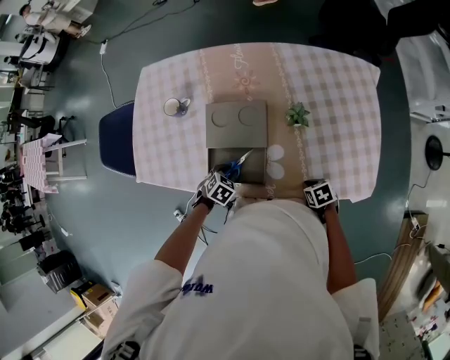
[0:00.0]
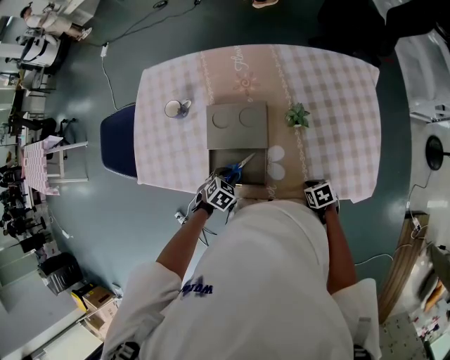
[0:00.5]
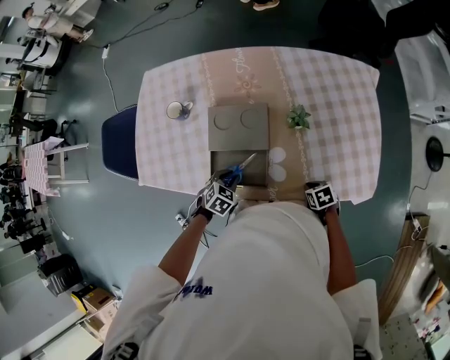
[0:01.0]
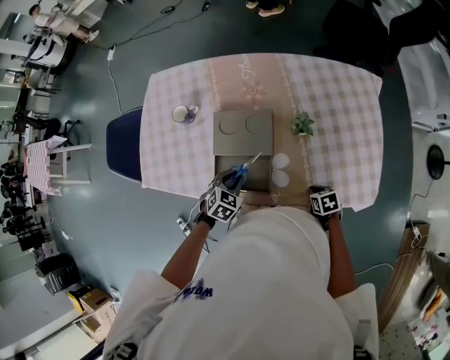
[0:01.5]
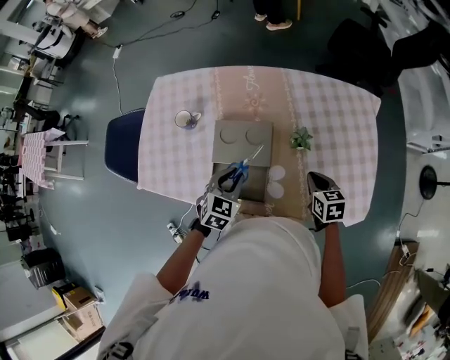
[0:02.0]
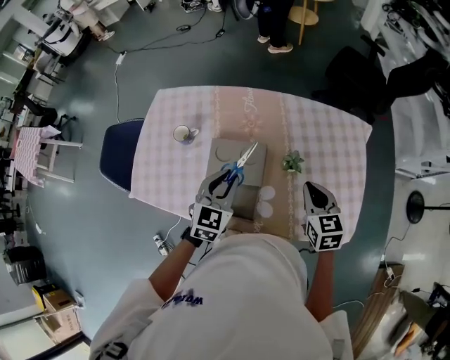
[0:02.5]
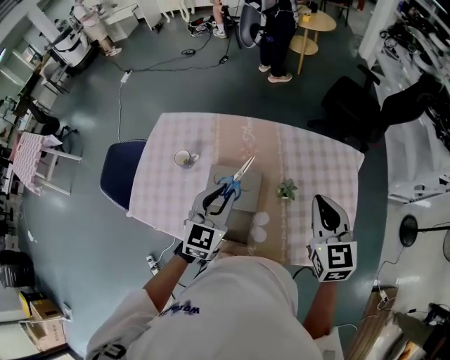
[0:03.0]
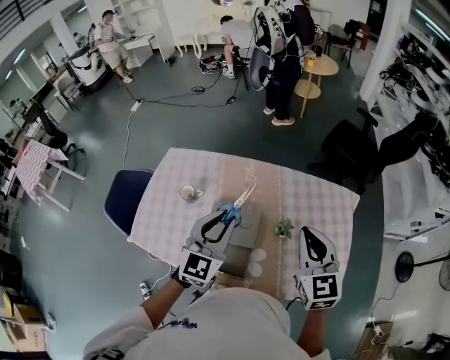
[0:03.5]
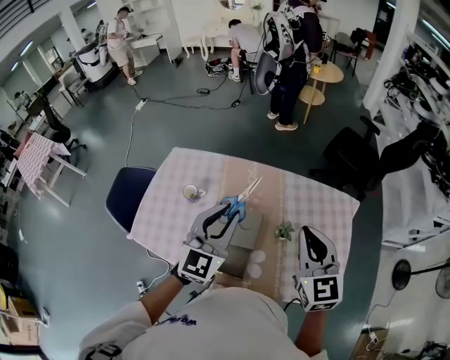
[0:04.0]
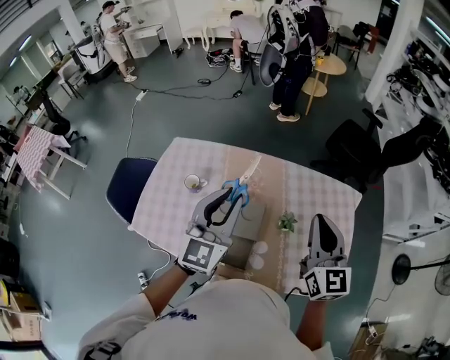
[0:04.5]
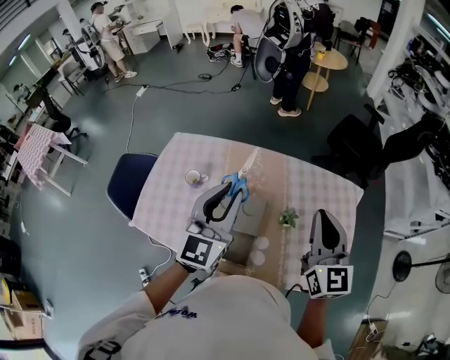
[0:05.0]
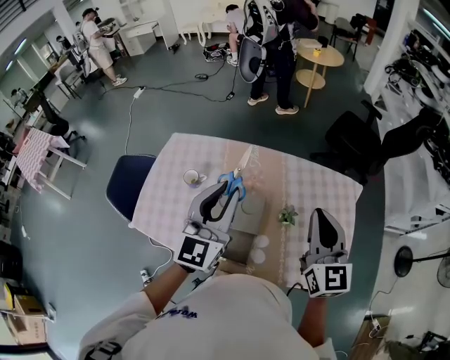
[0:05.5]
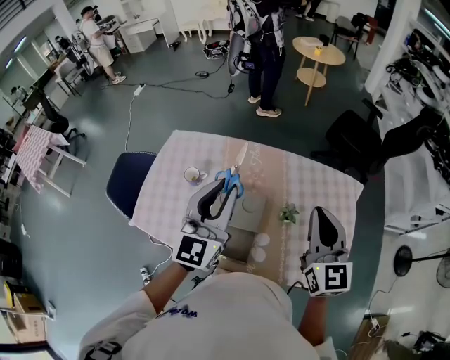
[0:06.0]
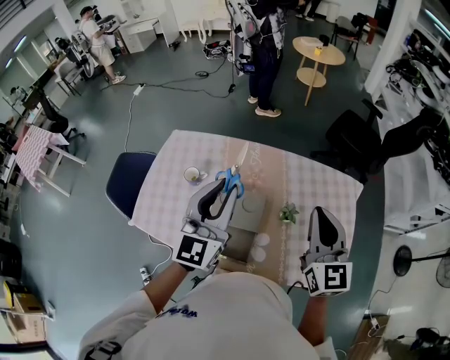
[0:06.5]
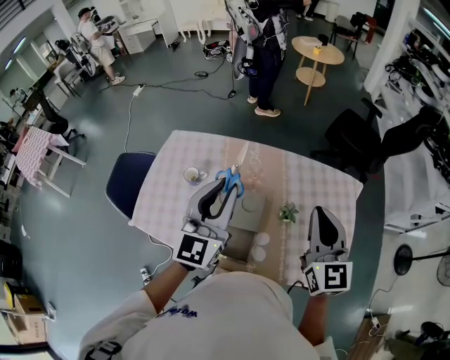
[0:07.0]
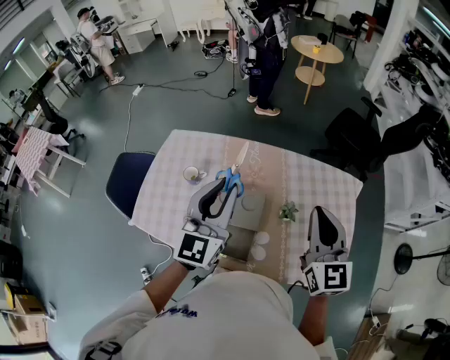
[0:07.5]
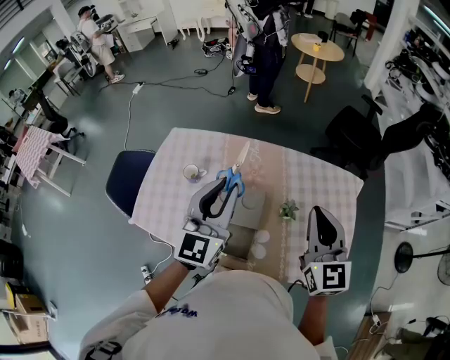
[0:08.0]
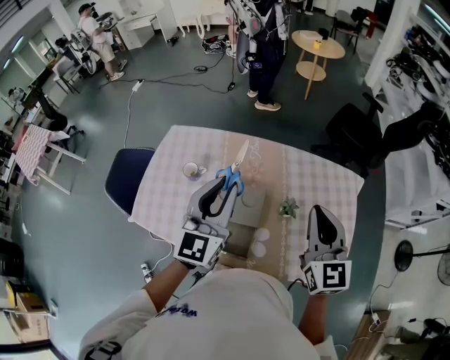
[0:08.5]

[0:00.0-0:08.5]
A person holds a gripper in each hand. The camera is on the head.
0:00.0 to 0:02.0: The left gripper goes some 20 cm upward, and turns by approximately 30 degrees, while the right gripper heads upward and forward, covering roughly 20 cm, and changes its angle by roughly 30 degrees.
0:02.0 to 0:04.0: Both grippers move upward, some 30 cm. The right gripper angles its fingers upward, by about 30 degrees. Meanwhile the left gripper tilts its fingers about 40 degrees upward.
0:04.0 to 0:06.5: There are only small adjustments of the grippers.
0:06.5 to 0:08.5: Neither gripper changes place.

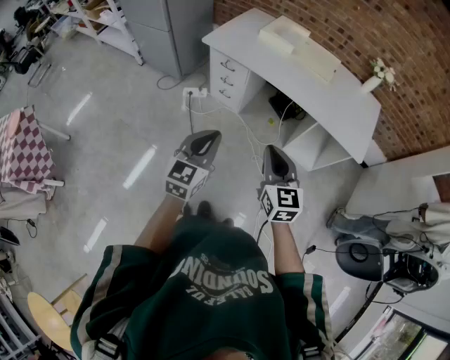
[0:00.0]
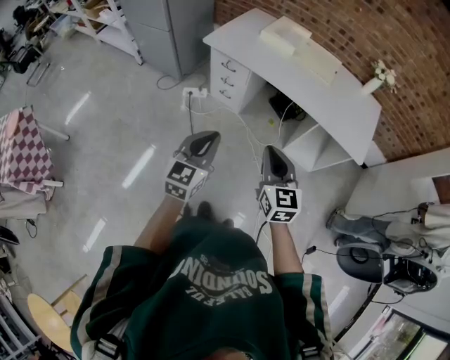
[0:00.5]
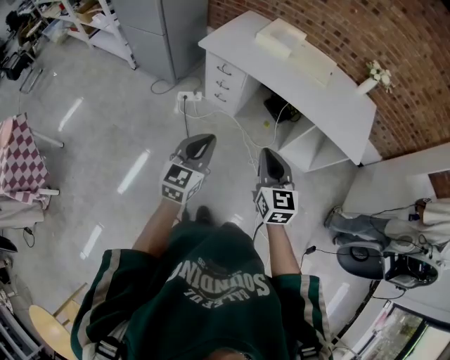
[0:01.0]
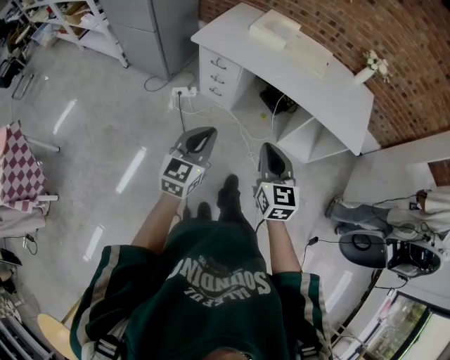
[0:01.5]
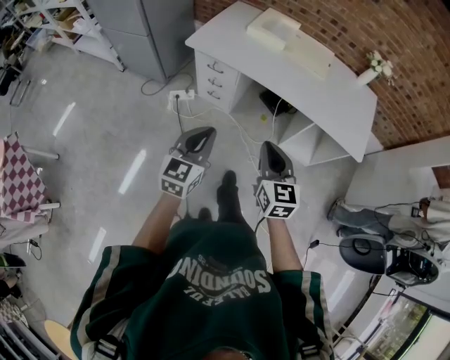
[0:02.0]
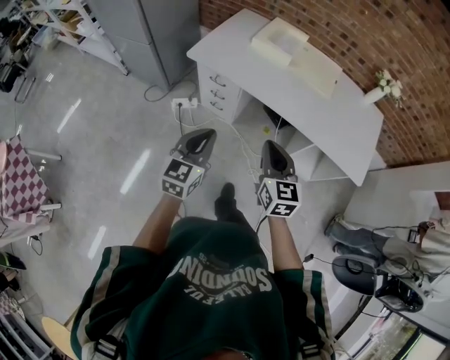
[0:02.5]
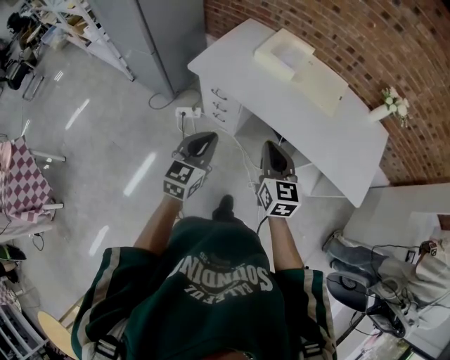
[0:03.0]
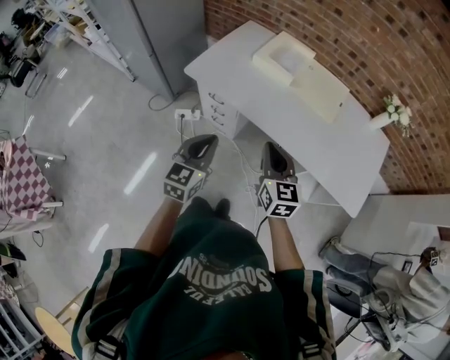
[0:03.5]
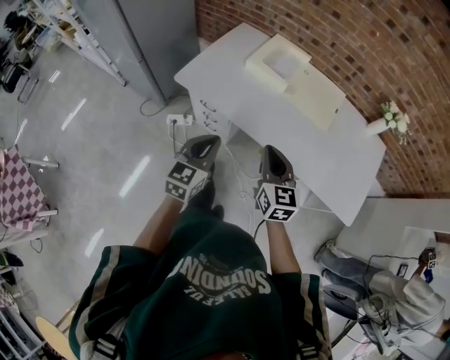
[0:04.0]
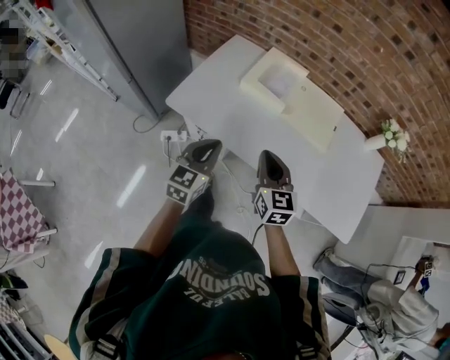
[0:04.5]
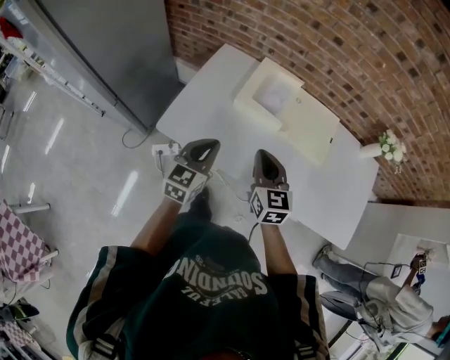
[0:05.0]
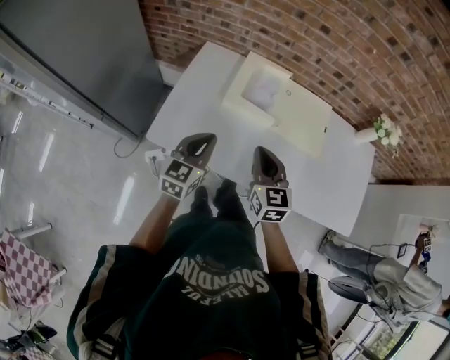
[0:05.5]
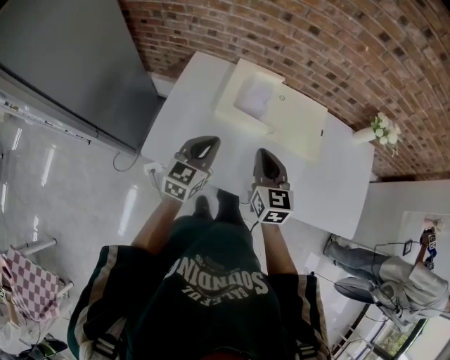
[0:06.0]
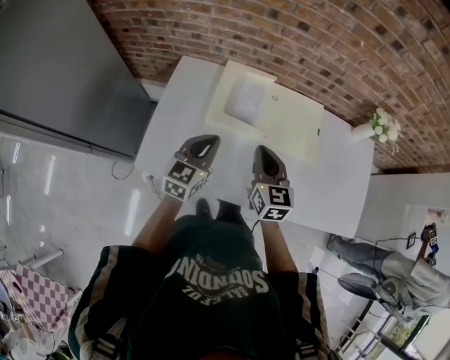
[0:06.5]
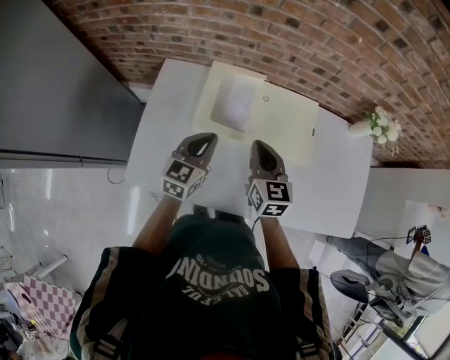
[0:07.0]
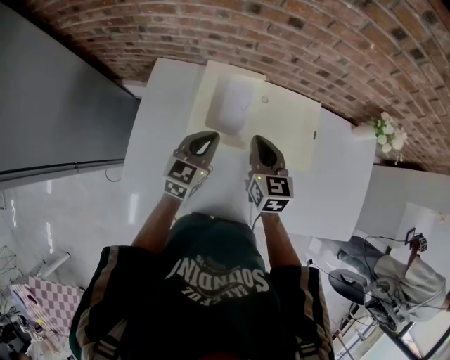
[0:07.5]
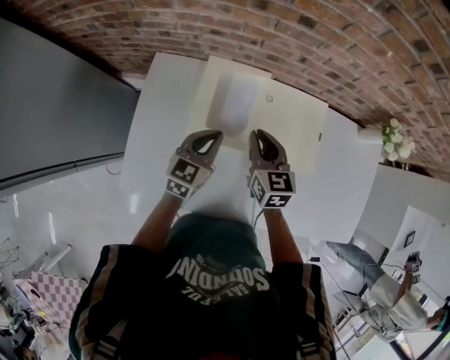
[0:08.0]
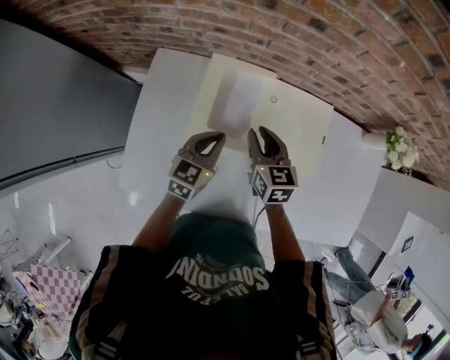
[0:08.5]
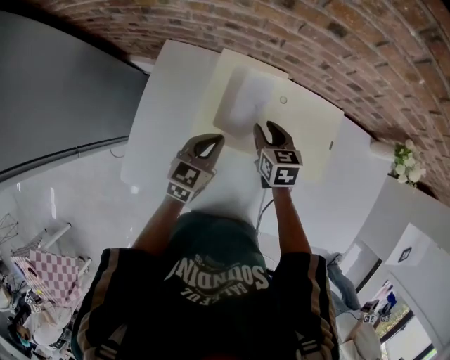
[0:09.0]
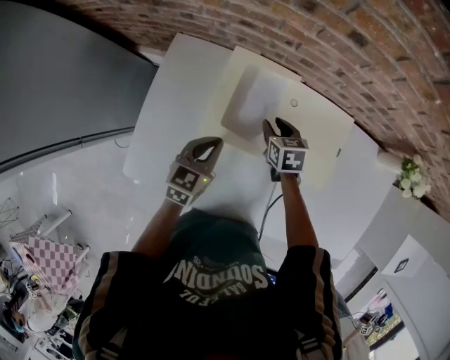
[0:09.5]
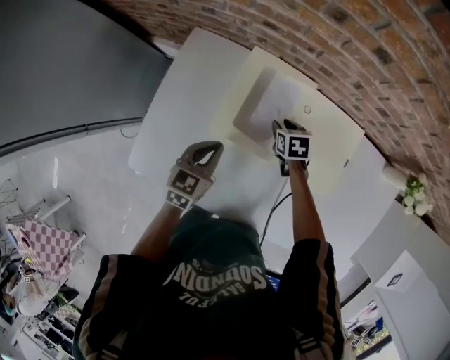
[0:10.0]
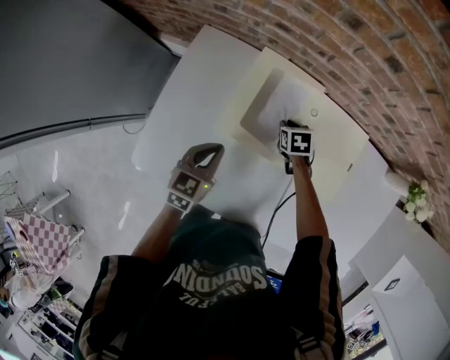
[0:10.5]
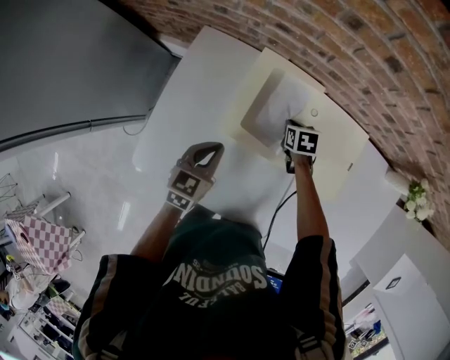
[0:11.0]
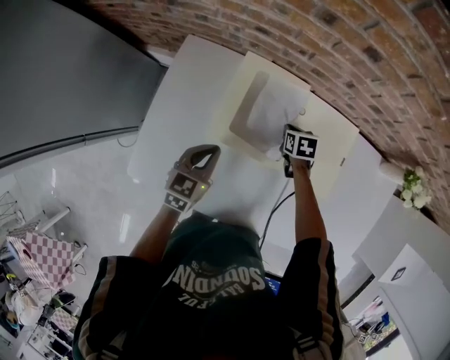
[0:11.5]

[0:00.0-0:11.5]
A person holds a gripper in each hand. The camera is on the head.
0:00.0 to 0:02.0: The grippers both shift forward by approximately 10 cm.
0:02.0 to 0:04.0: Both grippers move forward, roughly 30 cm.
0:04.0 to 0:06.0: The two grippers go some 30 cm forward.
0:06.0 to 0:07.5: Both grippers travel together forward, some 20 cm.
0:07.5 to 0:09.5: The right gripper heads downward and forward, covering about 20 cm, swivels roughly 30 degrees, and opens; the left gripper travels downward by approximately 5 cm.
0:09.5 to 0:11.5: The right gripper goes about 5 cm downward, and closes its fingers.

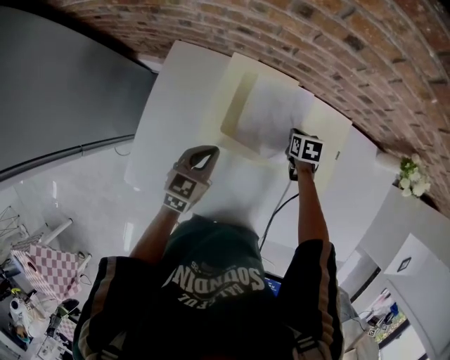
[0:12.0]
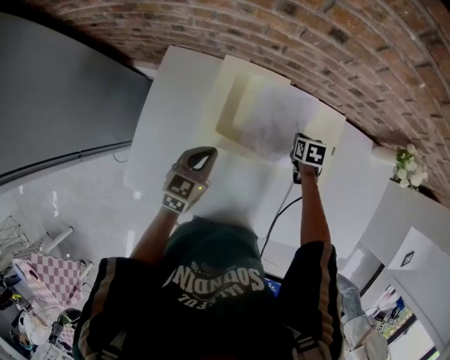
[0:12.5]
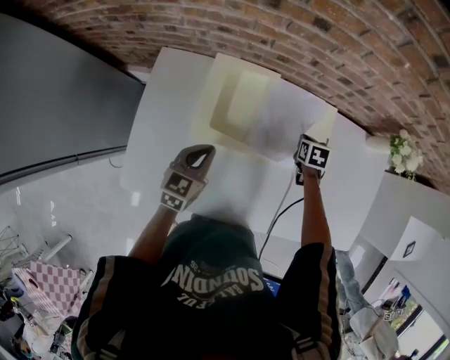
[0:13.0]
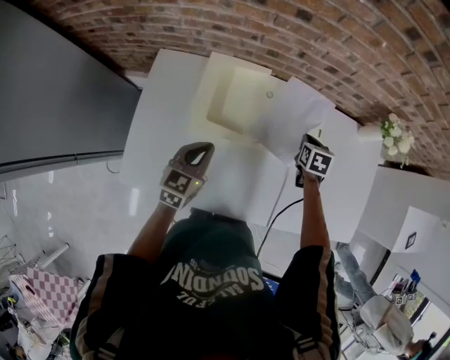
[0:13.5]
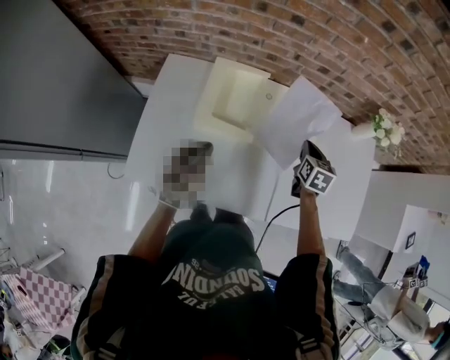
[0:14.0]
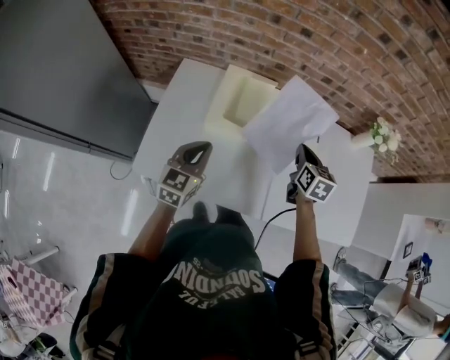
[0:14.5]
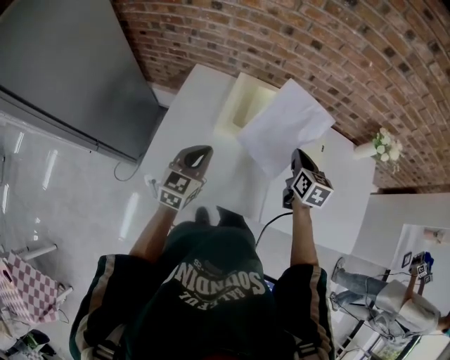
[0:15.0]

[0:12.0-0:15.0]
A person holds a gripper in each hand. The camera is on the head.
0:12.0 to 0:13.5: The right gripper moves to the right, upward and backward, approximately 15 cm, while the left gripper shifts by some 5 cm.
0:13.5 to 0:15.0: The left gripper is displaced backward, upward and to the left by about 15 cm. Meanwhile the right gripper shifts about 25 cm upward, backward and to the left, and rotates some 30 degrees.

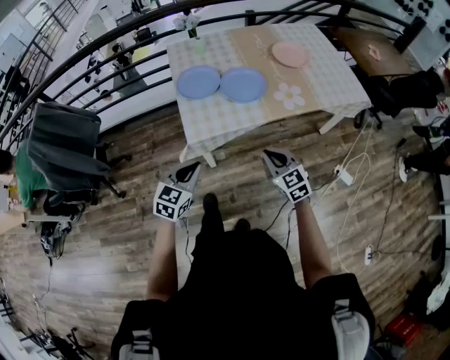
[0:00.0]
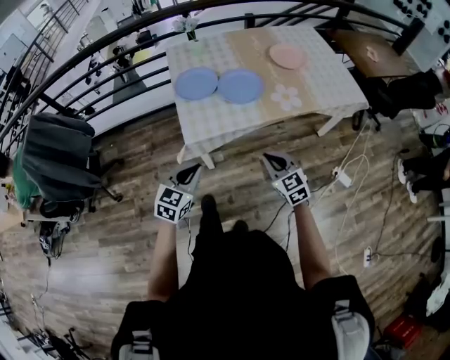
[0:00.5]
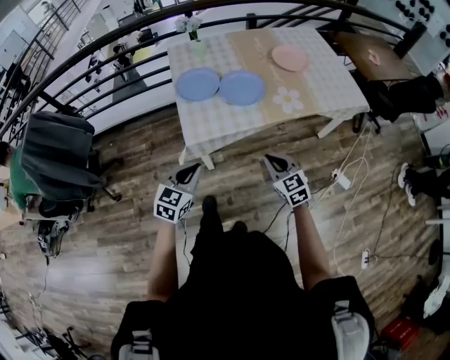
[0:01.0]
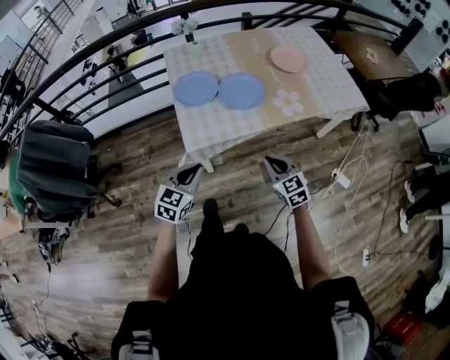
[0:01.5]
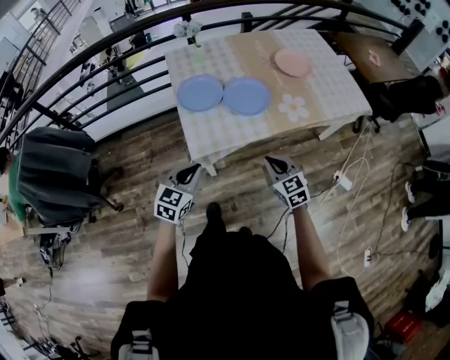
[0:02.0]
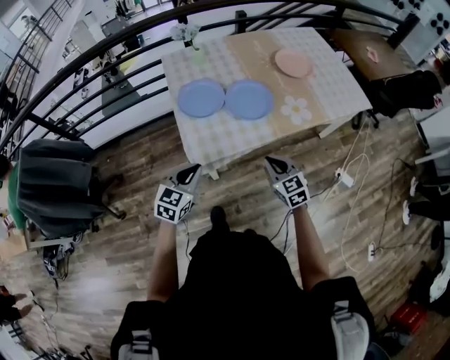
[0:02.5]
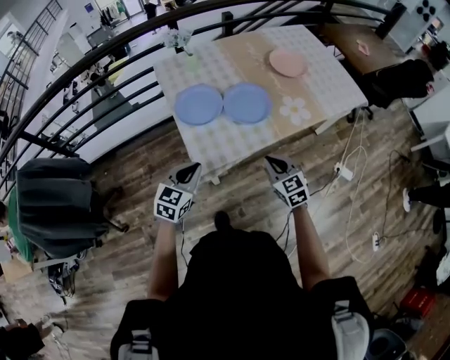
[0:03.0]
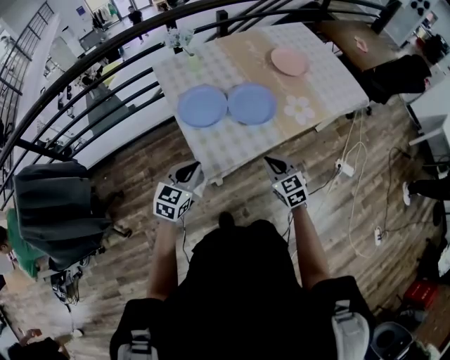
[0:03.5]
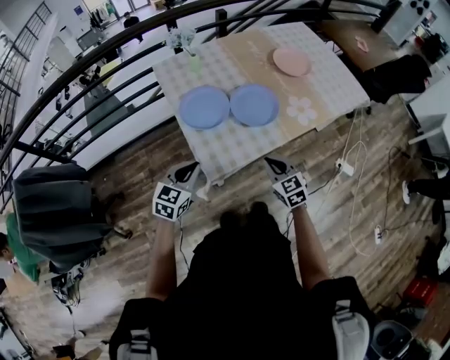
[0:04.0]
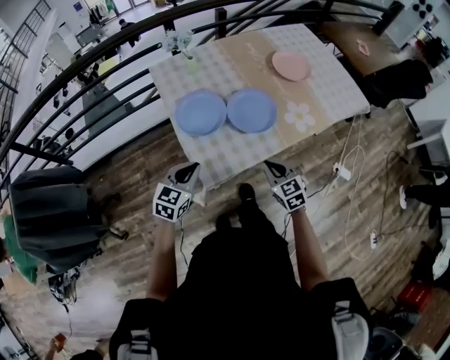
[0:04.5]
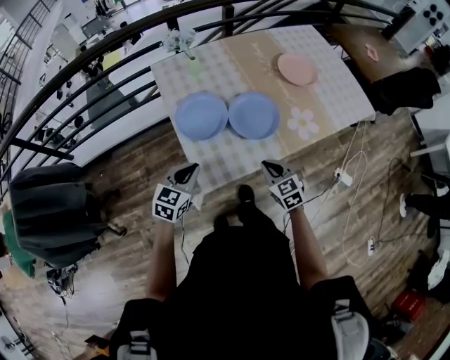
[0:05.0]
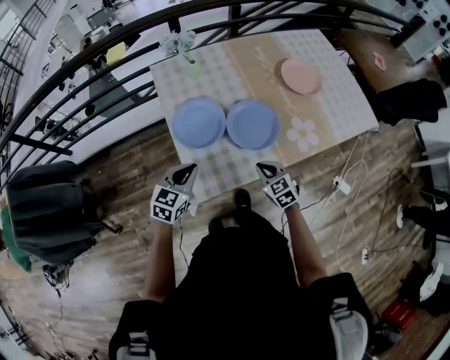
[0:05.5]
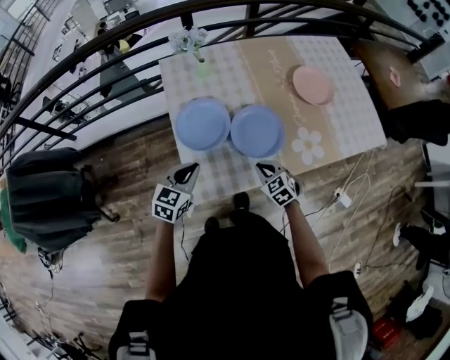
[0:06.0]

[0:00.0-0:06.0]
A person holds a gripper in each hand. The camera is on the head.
0:00.0 to 0:02.0: The grippers both shift forward by some 5 cm.
0:02.0 to 0:04.0: The two grippers go about 15 cm to the left and forward.
0:04.0 to 0:06.0: The right gripper goes about 20 cm forward and downward, and rotates roughly 20 degrees. Meanwhile the left gripper travels forward by about 15 cm.
